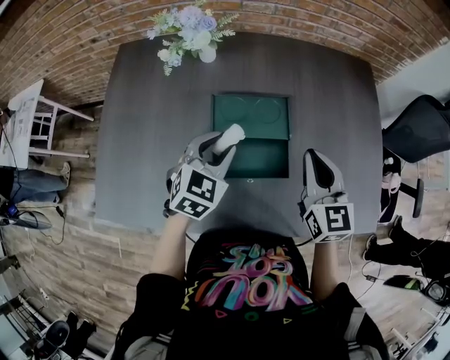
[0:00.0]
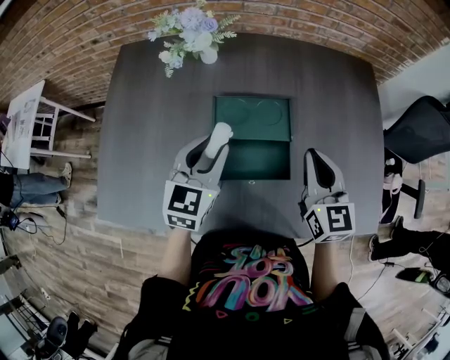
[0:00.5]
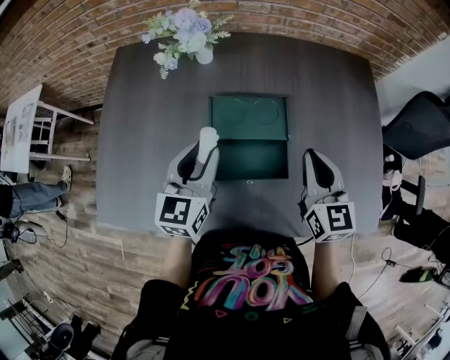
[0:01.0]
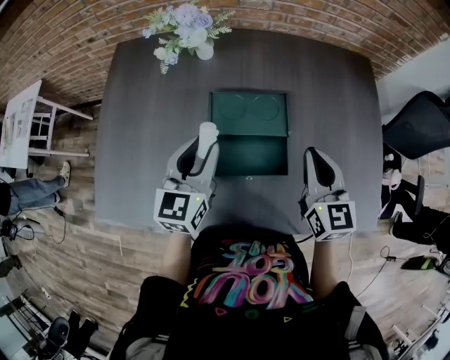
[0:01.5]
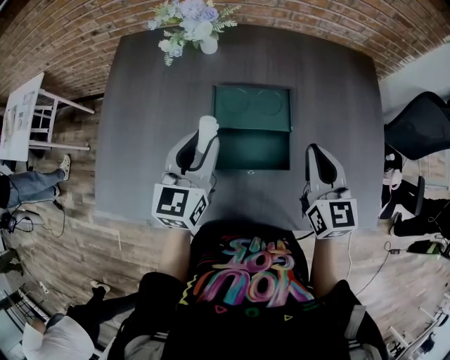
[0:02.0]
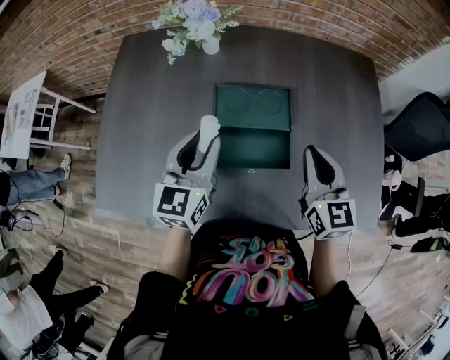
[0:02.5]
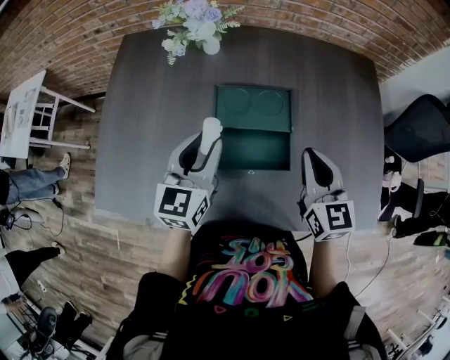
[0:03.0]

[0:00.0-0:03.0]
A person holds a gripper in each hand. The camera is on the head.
0:00.0 to 0:01.5: The left gripper changes place by some 5 cm, and turns by approximately 30 degrees.
0:01.5 to 0:03.0: There are only small adjustments of the grippers.

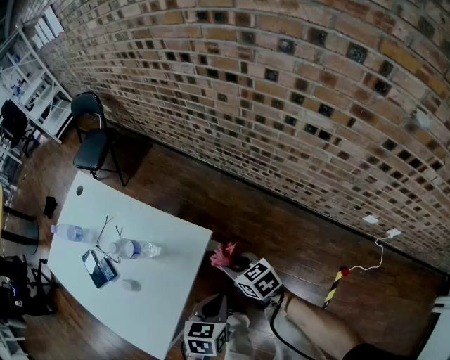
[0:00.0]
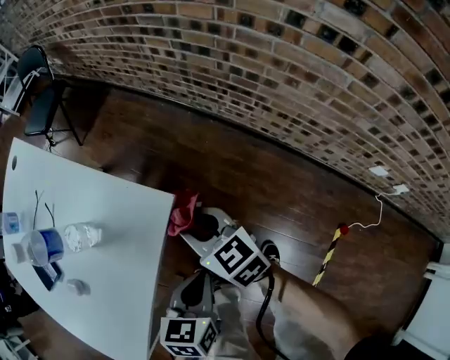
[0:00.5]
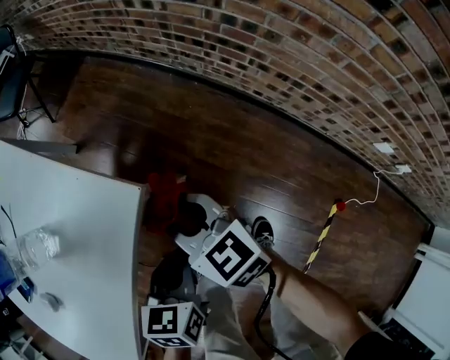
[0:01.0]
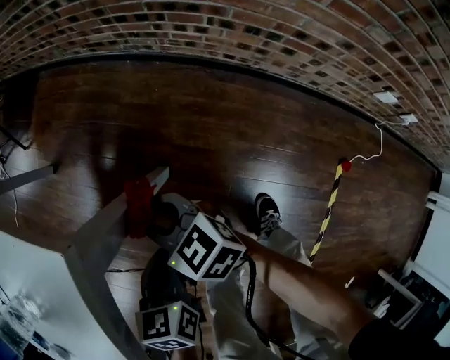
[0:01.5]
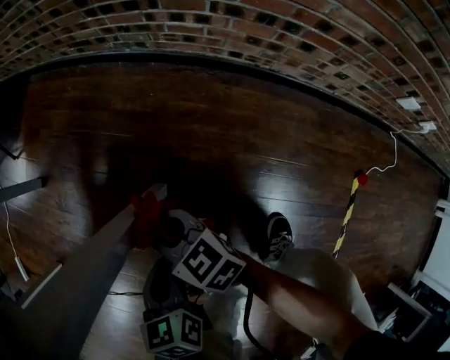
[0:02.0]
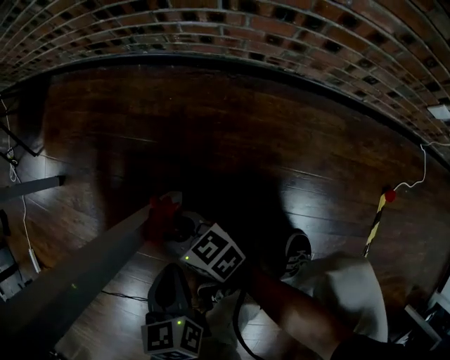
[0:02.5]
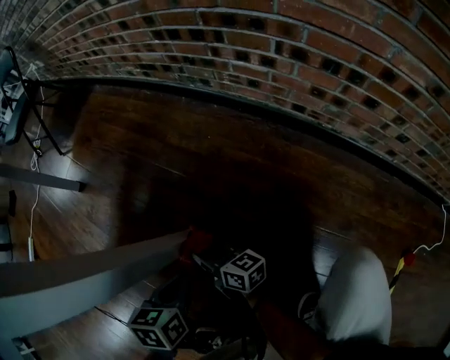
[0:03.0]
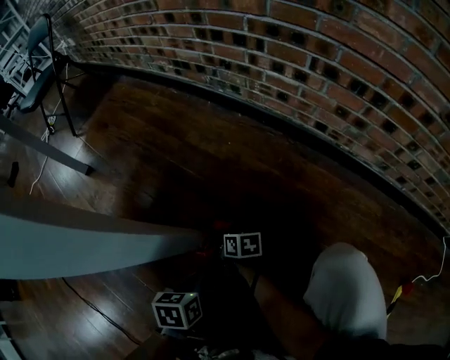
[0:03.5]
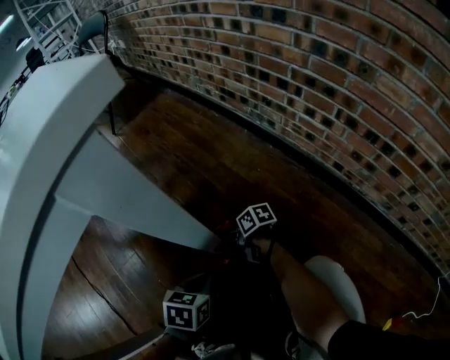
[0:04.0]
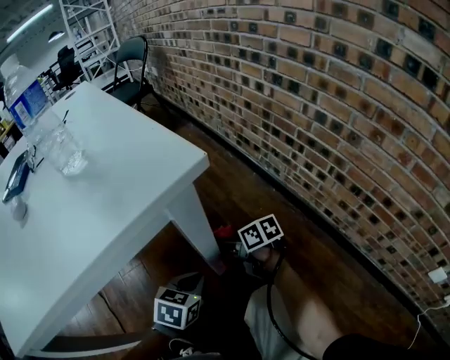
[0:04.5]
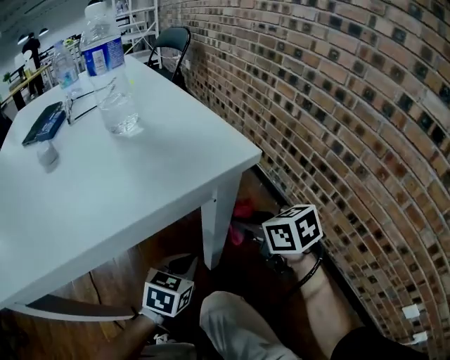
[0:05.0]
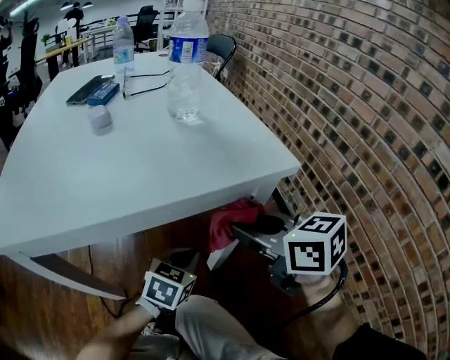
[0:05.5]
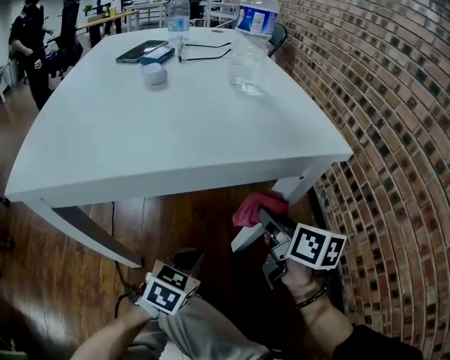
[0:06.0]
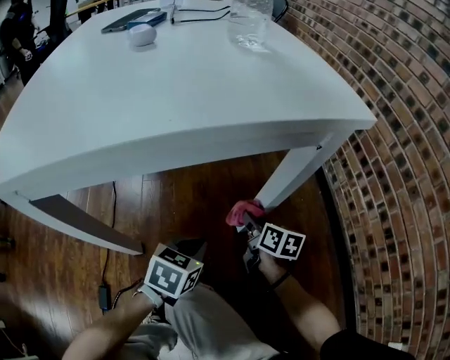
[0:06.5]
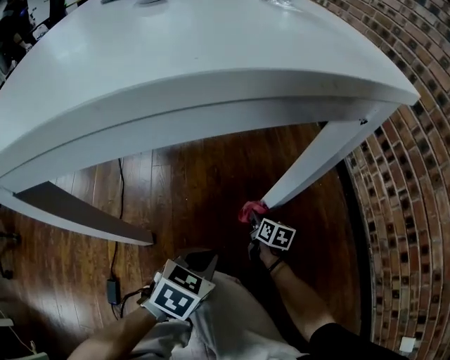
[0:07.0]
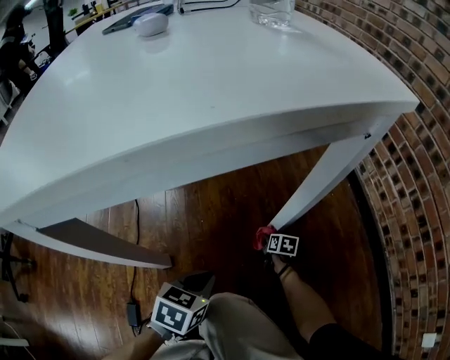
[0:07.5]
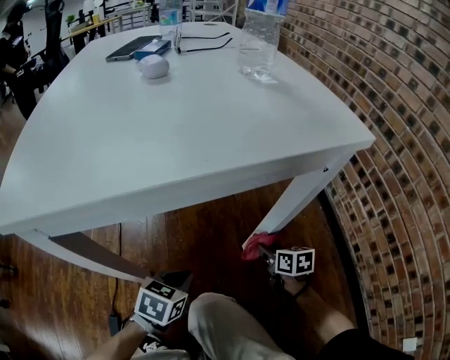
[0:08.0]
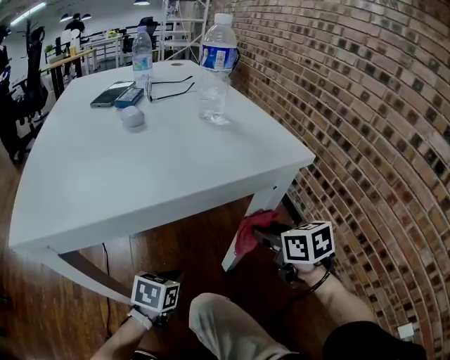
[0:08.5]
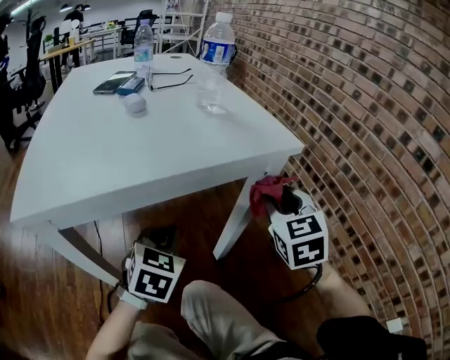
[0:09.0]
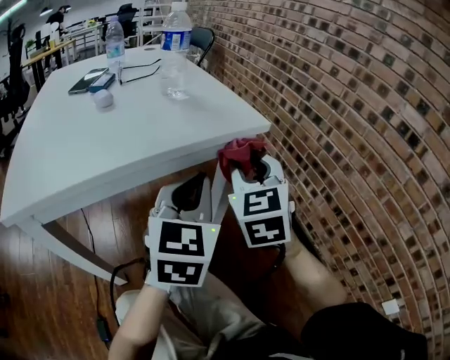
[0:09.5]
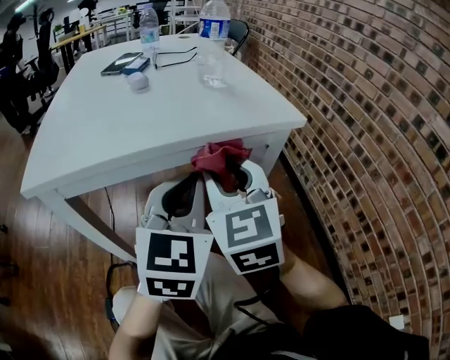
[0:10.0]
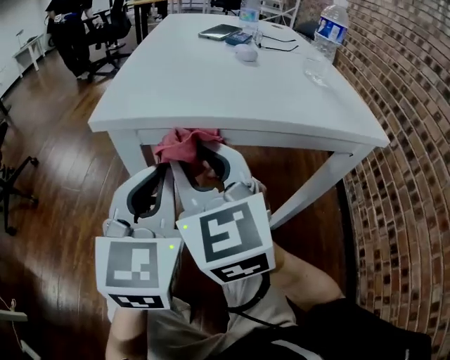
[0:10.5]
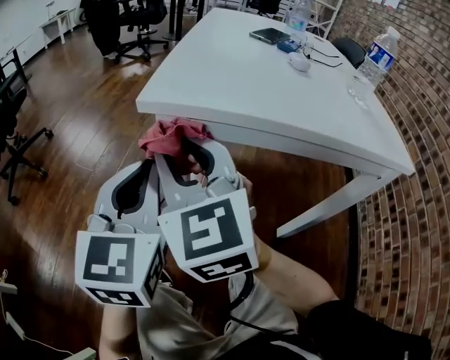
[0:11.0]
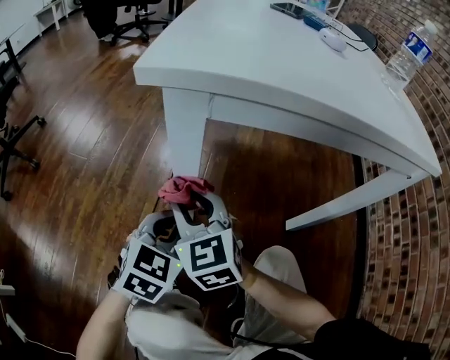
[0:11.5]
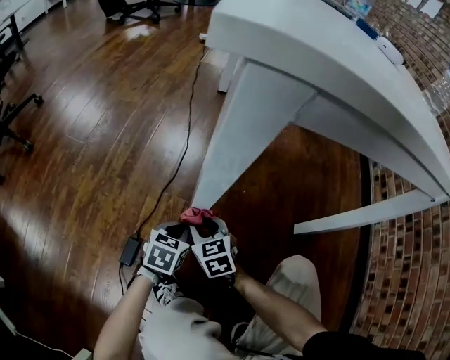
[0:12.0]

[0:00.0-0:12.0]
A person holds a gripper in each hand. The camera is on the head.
0:00.0 to 0:02.0: Both grippers travel together downward, some 40 cm.
0:02.0 to 0:04.0: The right gripper shifts some 30 cm downward, and rotates some 40 degrees. Meanwhile the left gripper travels downward by about 15 cm.
0:04.0 to 0:06.0: The right gripper travels upward by some 40 cm, and changes its angle by about 40 degrees. Meanwhile the left gripper moves upward and to the left, about 25 cm, and rotates some 30 degrees.
0:06.0 to 0:08.0: The left gripper shifts about 10 cm downward and to the left, while the right gripper shifts some 25 cm downward, and changes its angle by approximately 20 degrees.
0:08.0 to 0:10.0: Both grippers travel together upward, about 40 cm. The right gripper rolls counterclockwise, seen from behind, by some 50 degrees. The left gripper tips its fingers upward by about 40 degrees.
0:10.0 to 0:12.0: The grippers both shift downward by roughly 50 cm. The right gripper turns by about 40 degrees, while the left gripper tilts its fingers about 40 degrees downward.

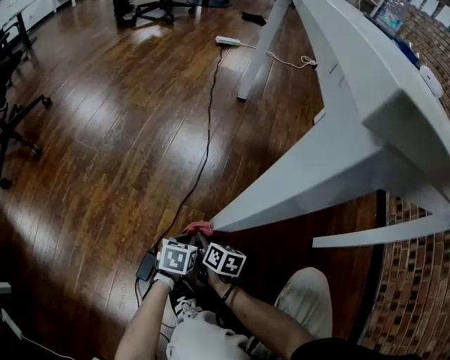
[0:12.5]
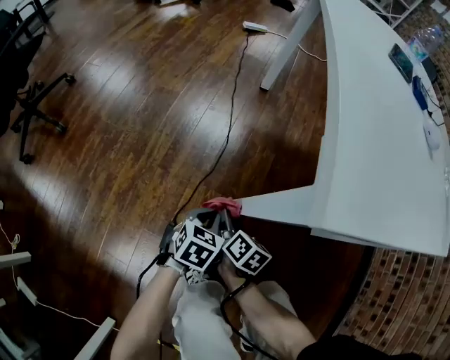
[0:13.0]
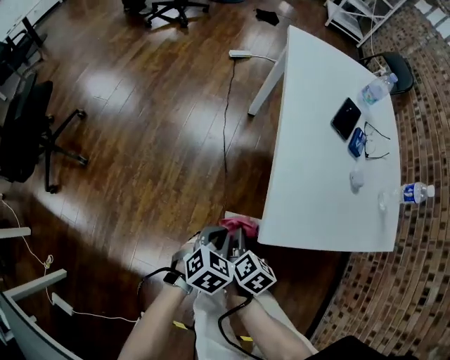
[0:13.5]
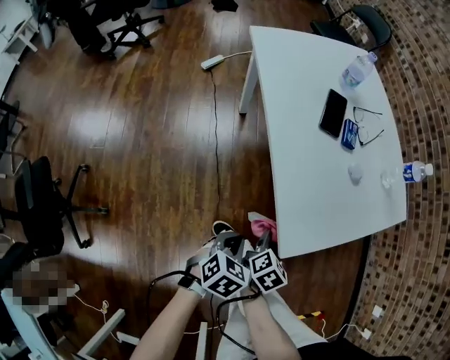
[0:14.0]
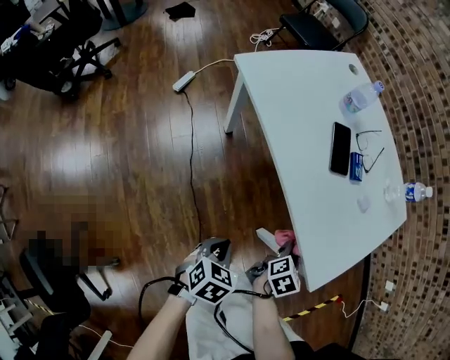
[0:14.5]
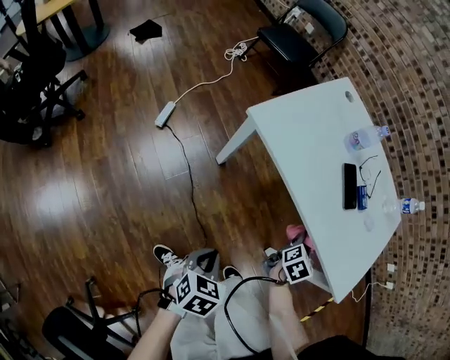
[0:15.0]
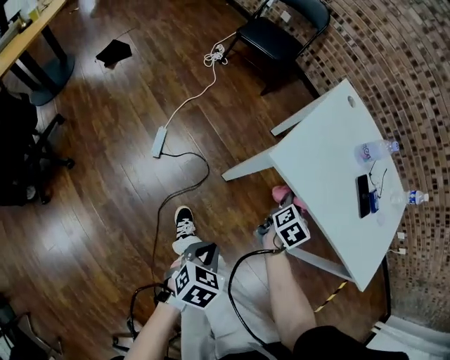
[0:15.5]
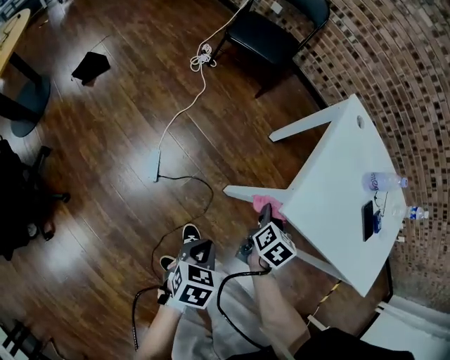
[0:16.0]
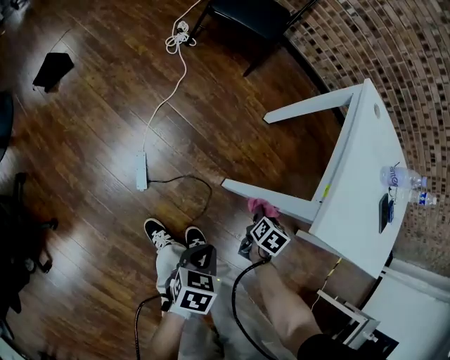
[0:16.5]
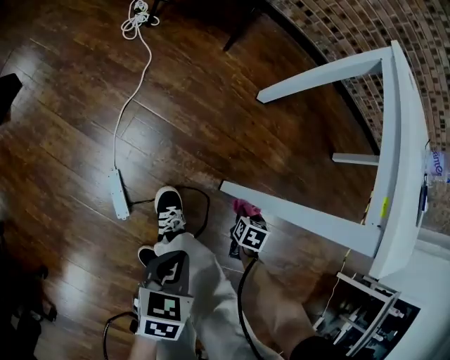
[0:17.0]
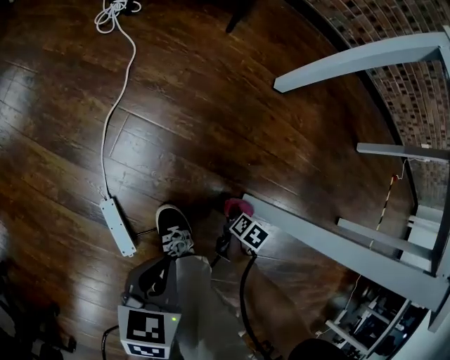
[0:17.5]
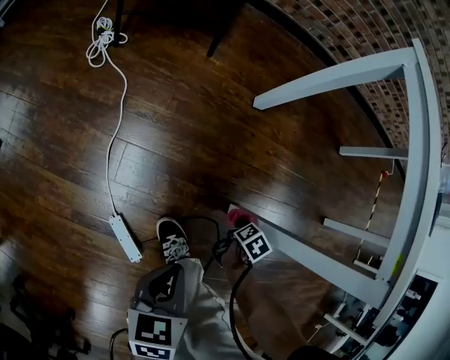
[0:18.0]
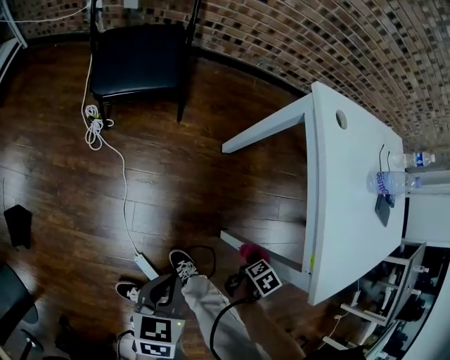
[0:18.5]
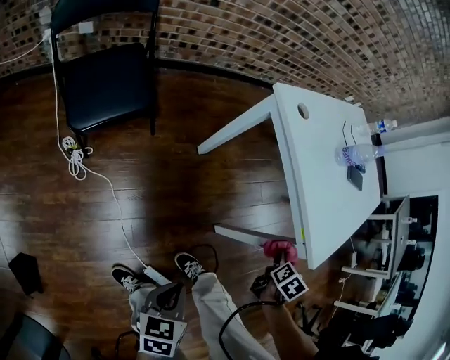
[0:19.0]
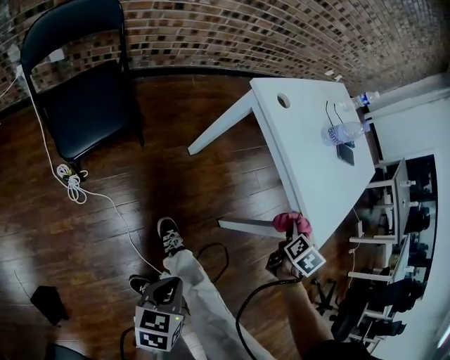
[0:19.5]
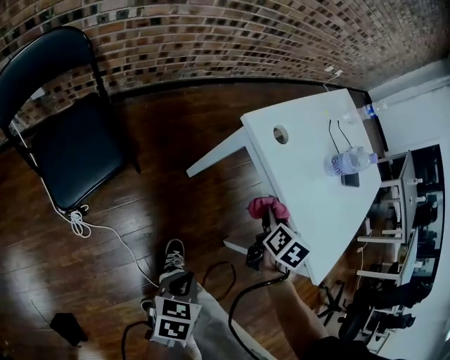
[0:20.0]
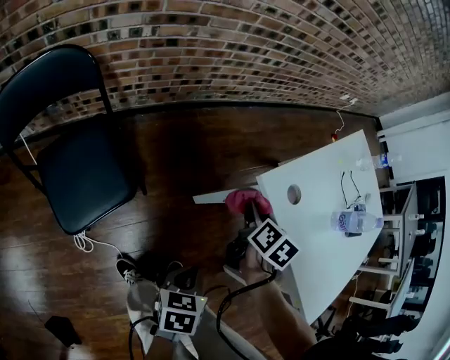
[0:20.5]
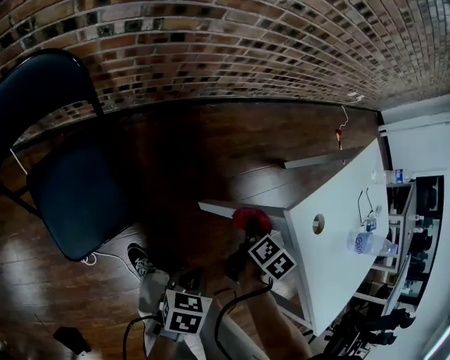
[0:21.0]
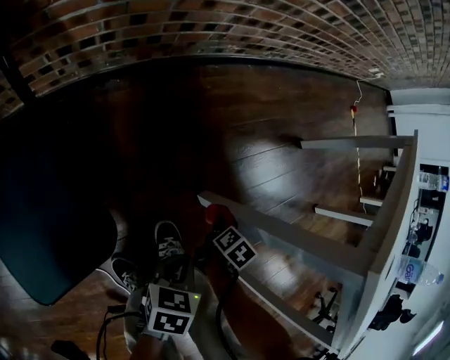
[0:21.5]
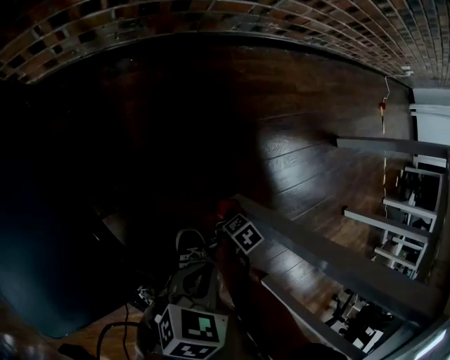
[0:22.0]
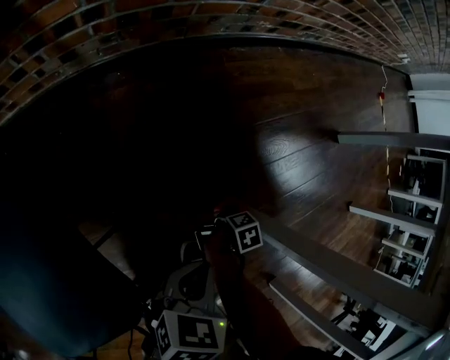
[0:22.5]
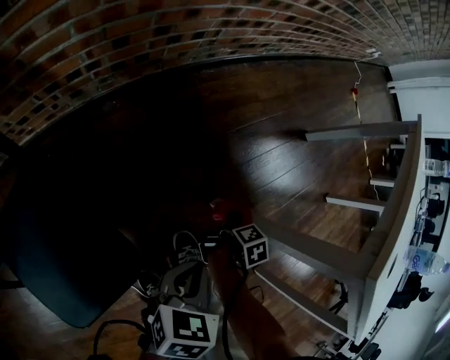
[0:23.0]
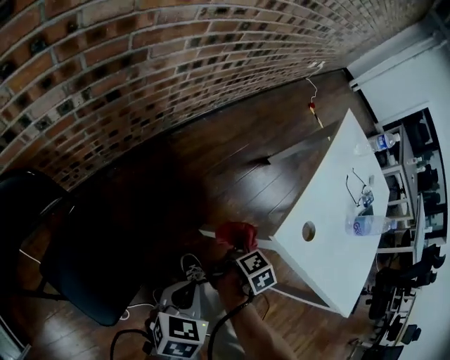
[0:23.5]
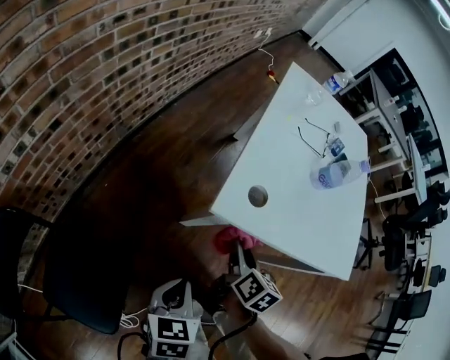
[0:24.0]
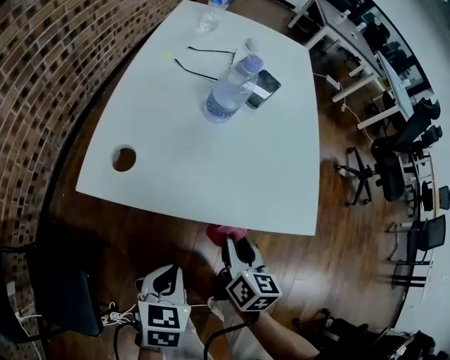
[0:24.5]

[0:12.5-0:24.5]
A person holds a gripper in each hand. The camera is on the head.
0:12.5 to 0:14.5: Both grippers move upward, some 60 cm. The right gripper swivels some 90 degrees. Meanwhile the left gripper rotates around the line of its fingers by about 50 degrees, clockwise from behind.
0:14.5 to 0:16.5: The pair of grippers is taken approximately 70 cm. The right gripper swivels roughly 20 degrees; the left gripper changes its angle by approximately 30 degrees.
0:16.5 to 0:18.5: The right gripper reaches about 40 cm downward, then returns, and rolls clockwise, seen from behind, by some 50 degrees, while the left gripper goes downward and returns, approximately 25 cm each way, and turns by roughly 20 degrees.
0:18.5 to 0:20.5: The right gripper shifts about 50 cm to the left, upward and forward, and rotates about 20 degrees. The left gripper shifts some 35 cm to the left and forward, and changes its angle by approximately 30 degrees.
0:20.5 to 0:22.5: The right gripper is displaced downward by some 60 cm, and swivels about 50 degrees; the left gripper is displaced downward by roughly 35 cm.
0:22.5 to 0:24.5: Both grippers travel together upward and to the right, roughly 60 cm. The left gripper swivels about 40 degrees. Meanwhile the right gripper angles its fingers upward, by approximately 30 degrees.
